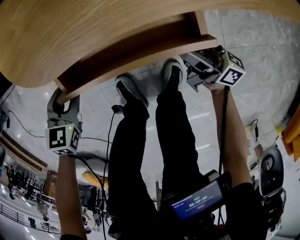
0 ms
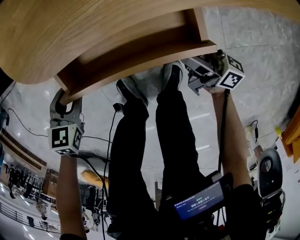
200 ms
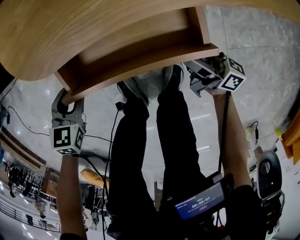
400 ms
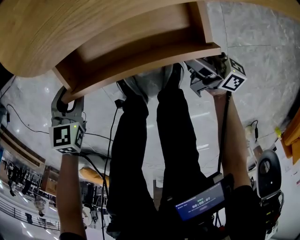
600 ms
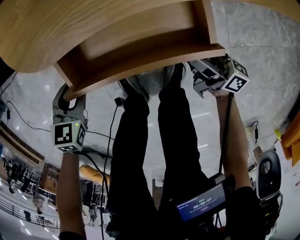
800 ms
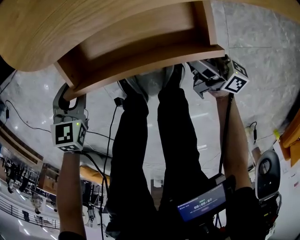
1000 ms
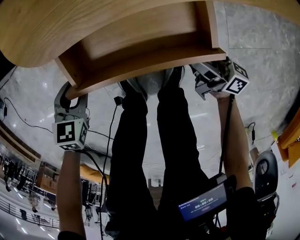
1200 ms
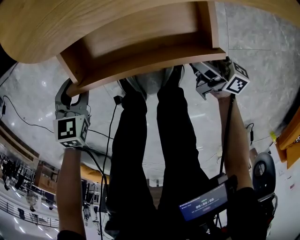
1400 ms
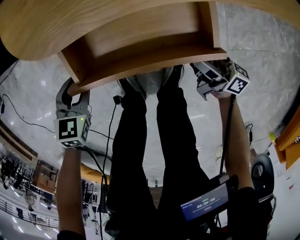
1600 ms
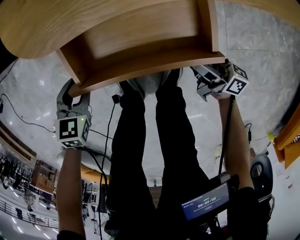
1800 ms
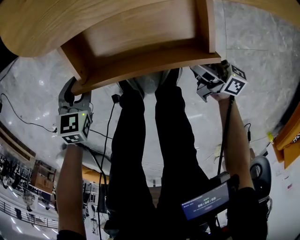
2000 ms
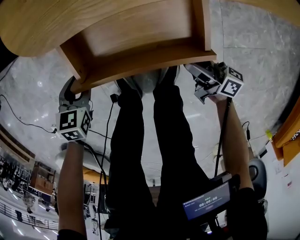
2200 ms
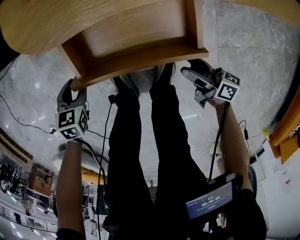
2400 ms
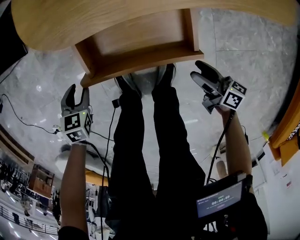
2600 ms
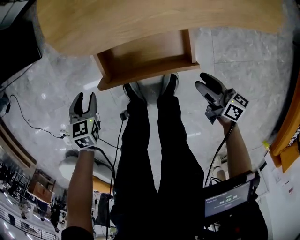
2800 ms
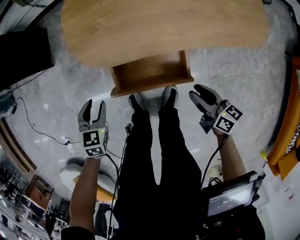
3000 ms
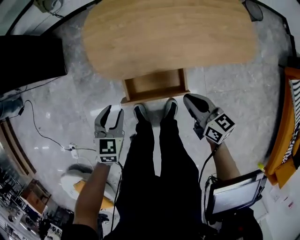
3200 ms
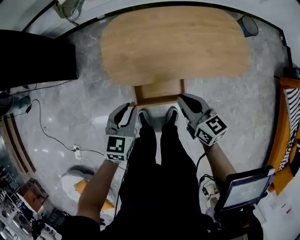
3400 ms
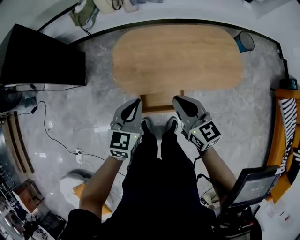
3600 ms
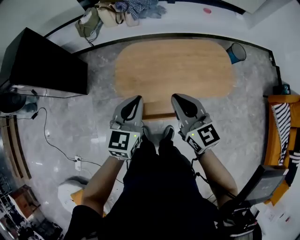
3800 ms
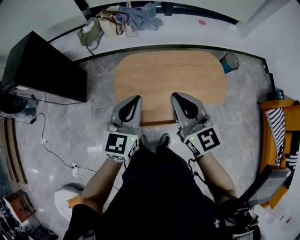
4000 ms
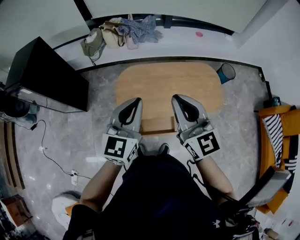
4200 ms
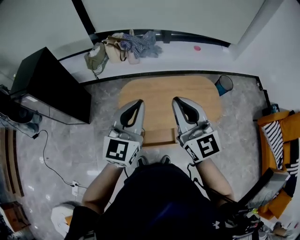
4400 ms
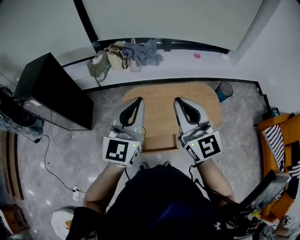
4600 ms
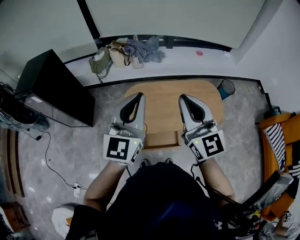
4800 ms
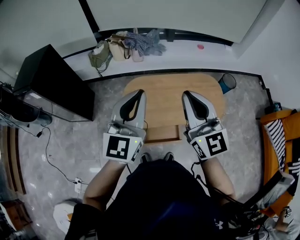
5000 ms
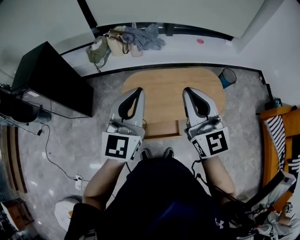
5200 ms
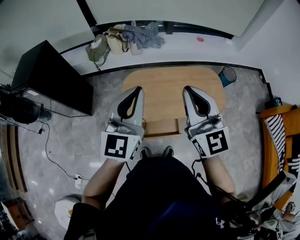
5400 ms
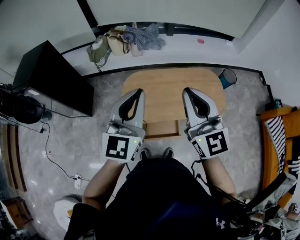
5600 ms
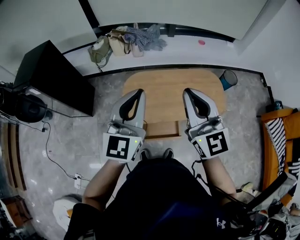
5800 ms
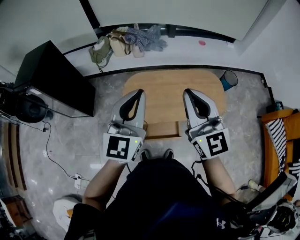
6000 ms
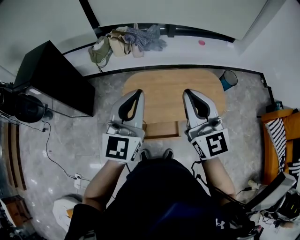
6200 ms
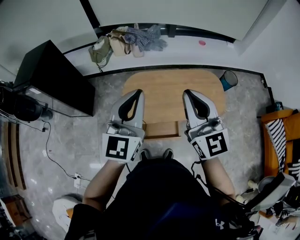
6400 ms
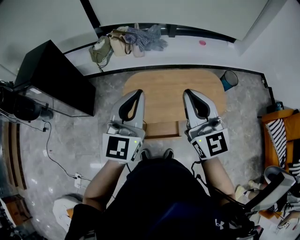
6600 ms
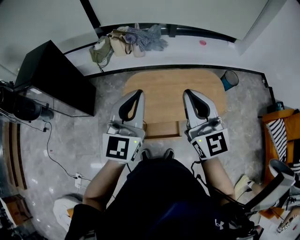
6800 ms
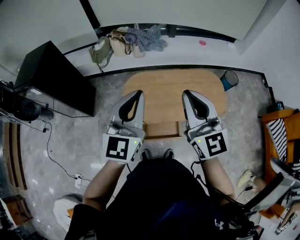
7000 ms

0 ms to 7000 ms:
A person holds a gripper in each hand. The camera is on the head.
0 ms to 1400 ms: The right gripper shifts about 5 cm backward.
1400 ms to 2800 ms: The left gripper goes roughly 10 cm upward, while the right gripper is displaced upward and backward by roughly 15 cm, changes its angle by approximately 30 degrees, and closes its fingers.
2800 ms to 4200 ms: Both grippers move upward, about 70 cm. The right gripper rolls counterclockwise, seen from behind, by some 60 degrees, and closes its fingers, while the left gripper angles its fingers upward, by some 50 degrees, and closes up.
4200 ms to 5600 ms: Both grippers travel together upward, about 10 cm.
5600 ms to 7000 ms: Neither gripper changes place.

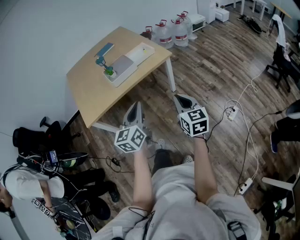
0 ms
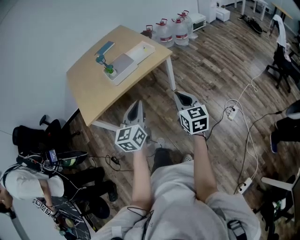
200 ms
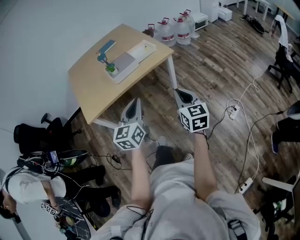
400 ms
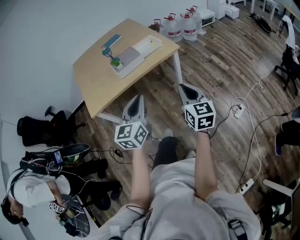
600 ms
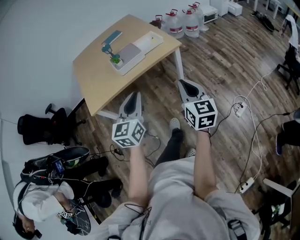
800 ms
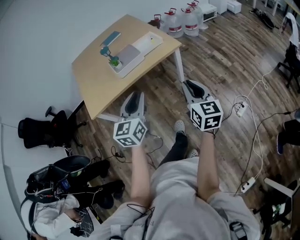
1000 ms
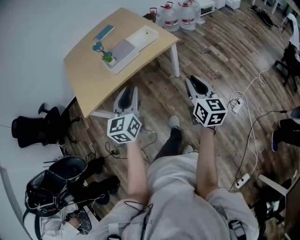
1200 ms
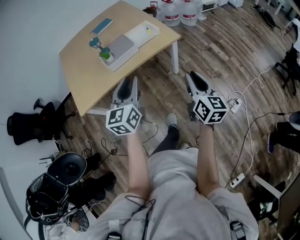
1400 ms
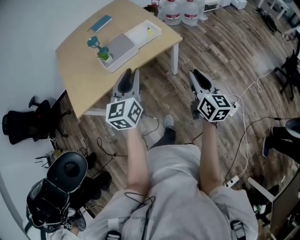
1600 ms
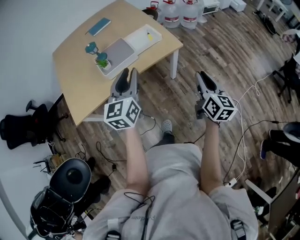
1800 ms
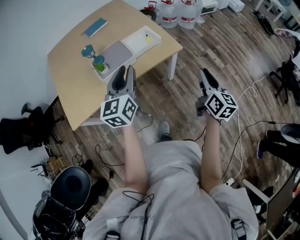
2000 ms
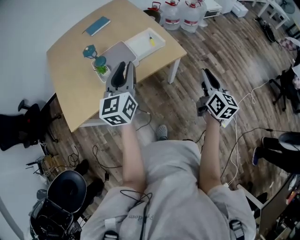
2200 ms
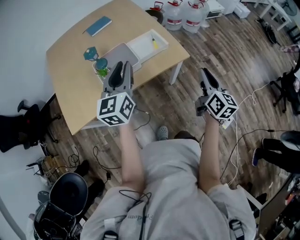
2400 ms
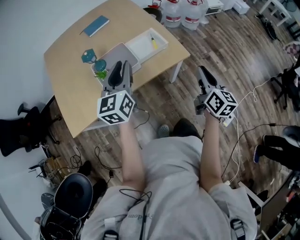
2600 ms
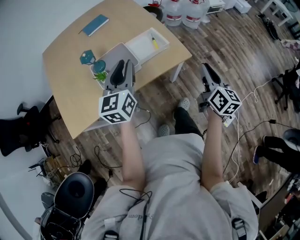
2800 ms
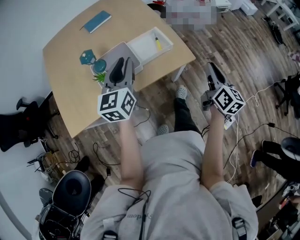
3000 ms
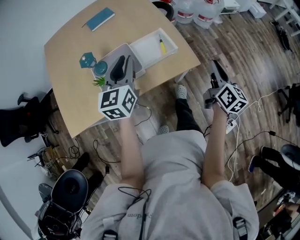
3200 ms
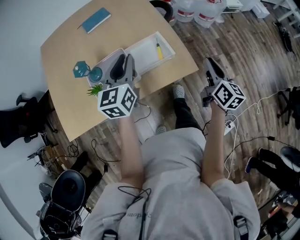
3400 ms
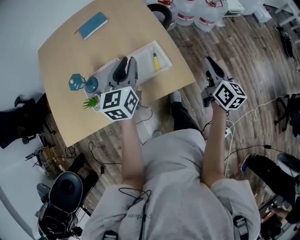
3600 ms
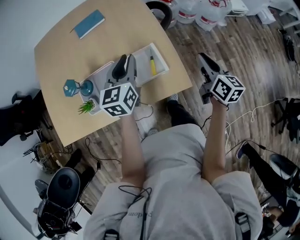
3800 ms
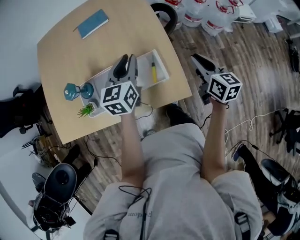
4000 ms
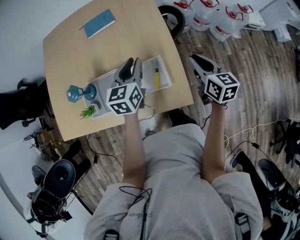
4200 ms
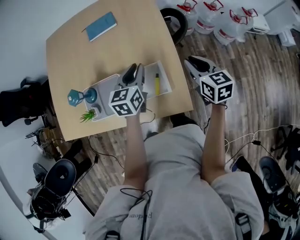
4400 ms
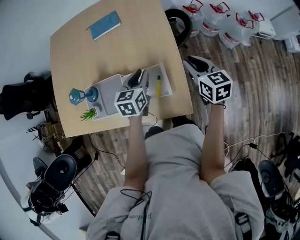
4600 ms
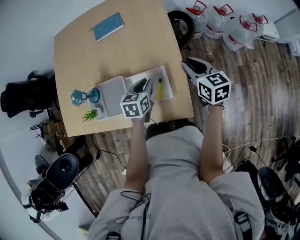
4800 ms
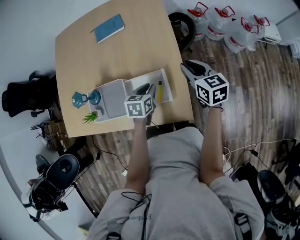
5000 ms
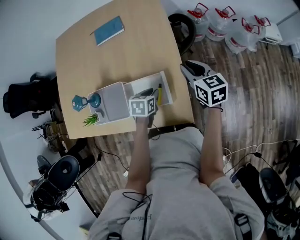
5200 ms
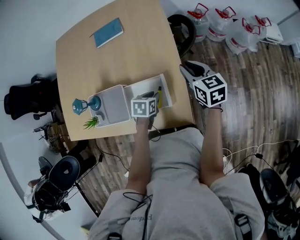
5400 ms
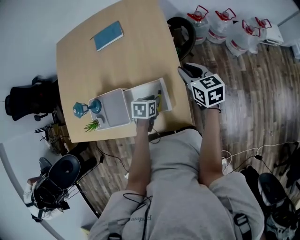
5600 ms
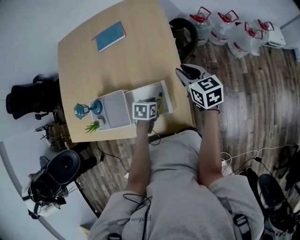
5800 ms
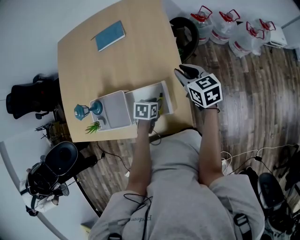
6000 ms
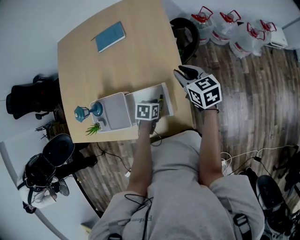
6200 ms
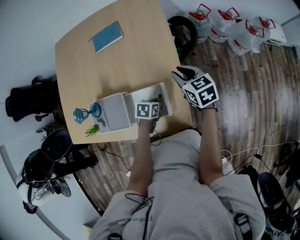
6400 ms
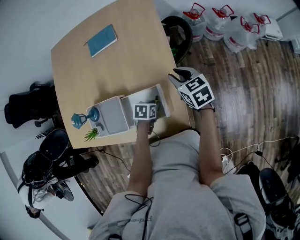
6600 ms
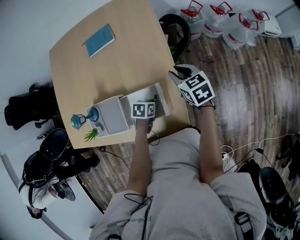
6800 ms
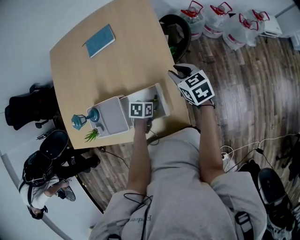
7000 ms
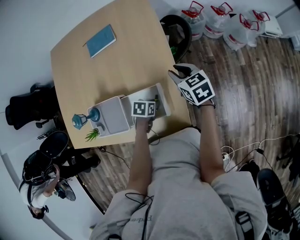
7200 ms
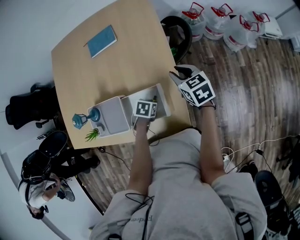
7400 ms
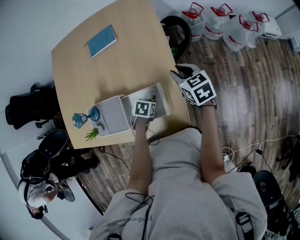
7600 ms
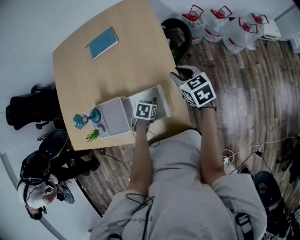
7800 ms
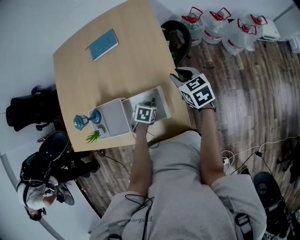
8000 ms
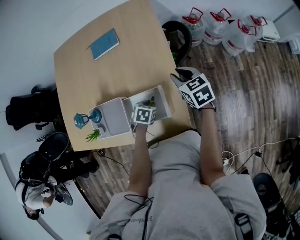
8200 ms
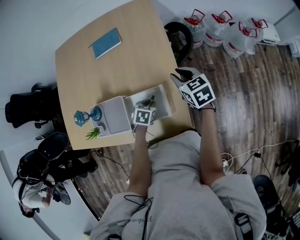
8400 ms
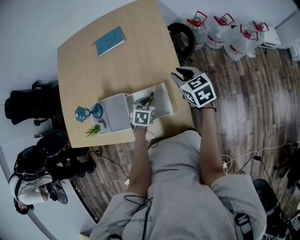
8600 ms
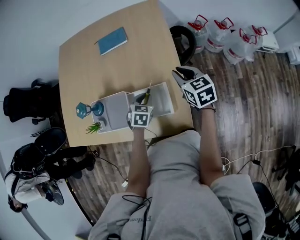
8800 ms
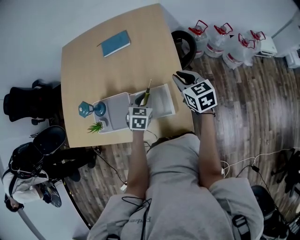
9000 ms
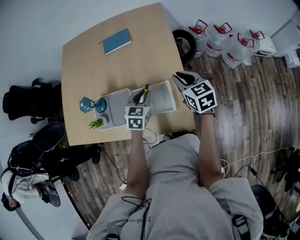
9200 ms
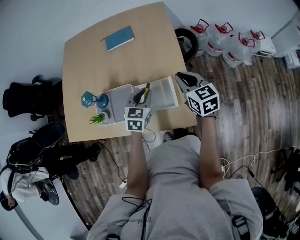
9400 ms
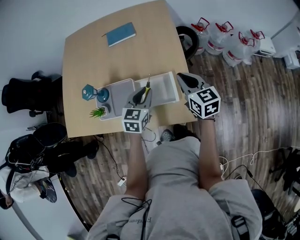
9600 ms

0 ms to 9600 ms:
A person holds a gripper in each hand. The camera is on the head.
0 ms to 1600 ms: The grippers both shift forward by about 20 cm. The left gripper opens its fingers.
1600 ms to 3200 ms: Both grippers travel together forward, about 35 cm.
3200 ms to 4800 ms: The right gripper moves approximately 35 cm, and rotates approximately 50 degrees; the left gripper shifts by roughly 30 cm, and angles its fingers downward, by about 30 degrees.
4800 ms to 6400 ms: The right gripper shifts about 5 cm forward, while the left gripper heads downward, covering about 15 cm, and changes its angle by about 30 degrees.
6400 ms to 8000 ms: The grippers move only a little.
8000 ms to 9600 ms: The left gripper travels upward by approximately 20 cm, and points its fingers some 50 degrees further upward, while the right gripper shifts by approximately 15 cm, and closes its fingers.

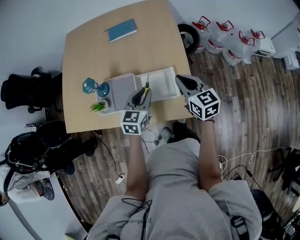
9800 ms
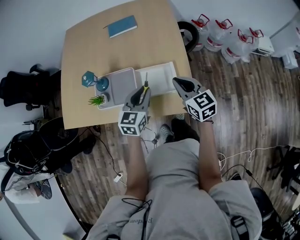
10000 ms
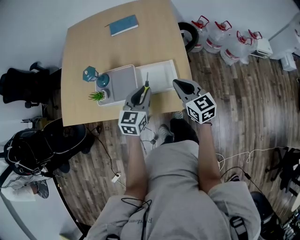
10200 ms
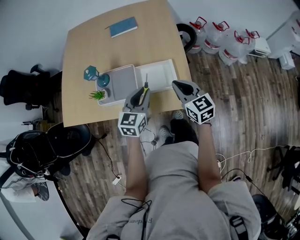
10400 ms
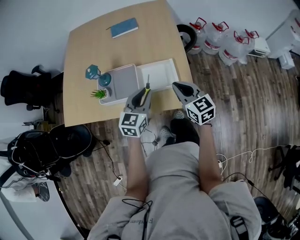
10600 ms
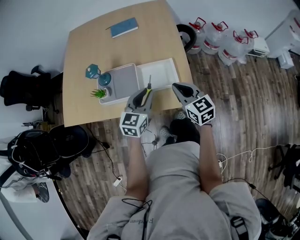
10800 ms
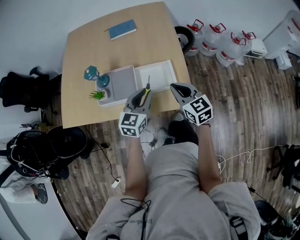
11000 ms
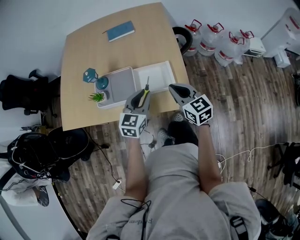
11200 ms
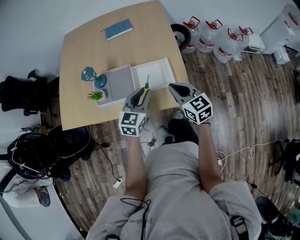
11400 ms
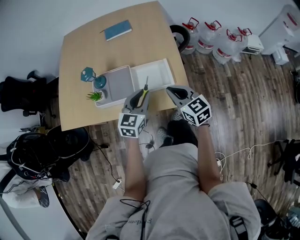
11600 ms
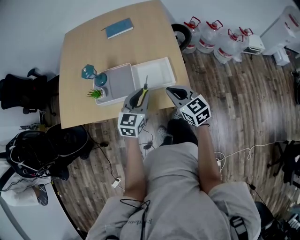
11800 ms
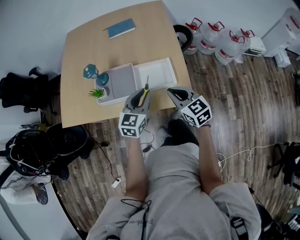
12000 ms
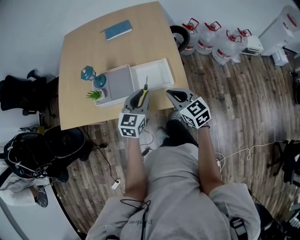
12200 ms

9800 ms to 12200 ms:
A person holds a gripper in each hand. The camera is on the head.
9800 ms to 11000 ms: Both grippers travel together backward, approximately 10 cm.
11000 ms to 12200 ms: The grippers move only a little.

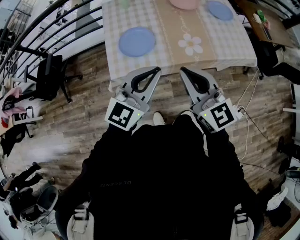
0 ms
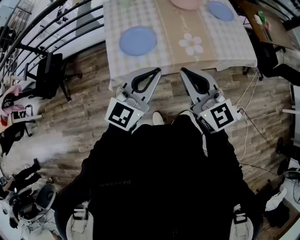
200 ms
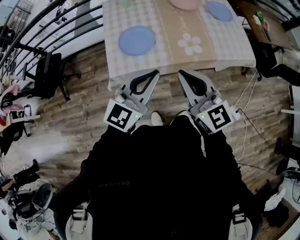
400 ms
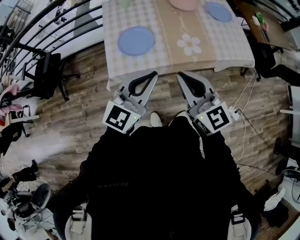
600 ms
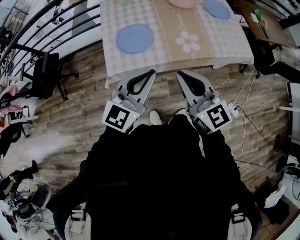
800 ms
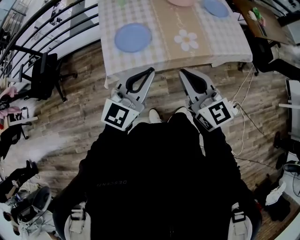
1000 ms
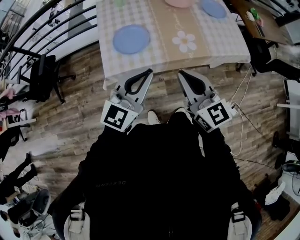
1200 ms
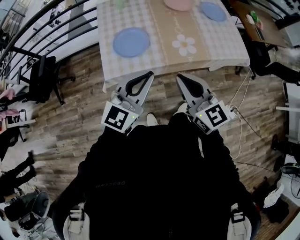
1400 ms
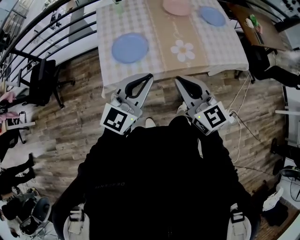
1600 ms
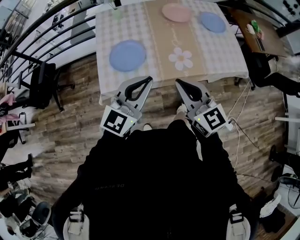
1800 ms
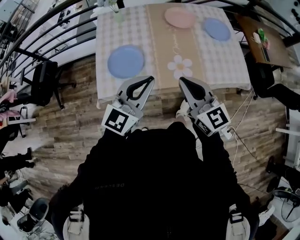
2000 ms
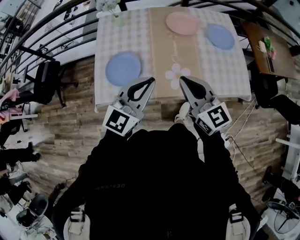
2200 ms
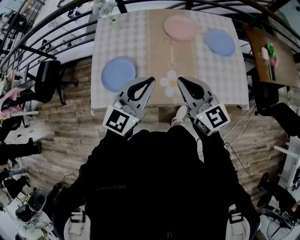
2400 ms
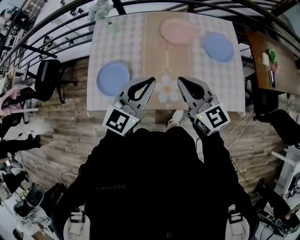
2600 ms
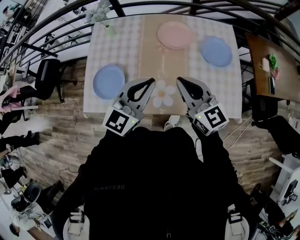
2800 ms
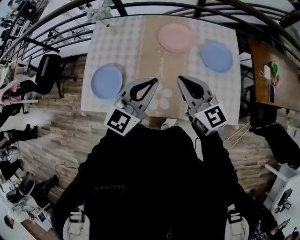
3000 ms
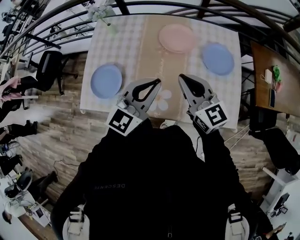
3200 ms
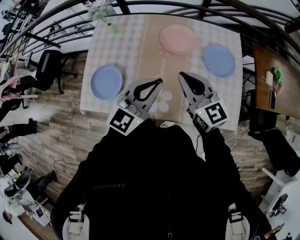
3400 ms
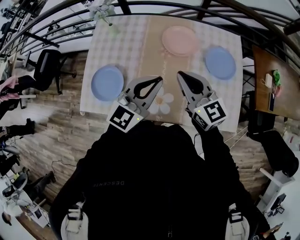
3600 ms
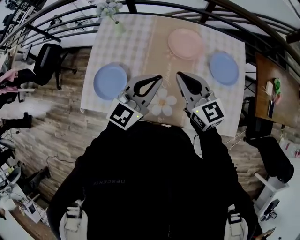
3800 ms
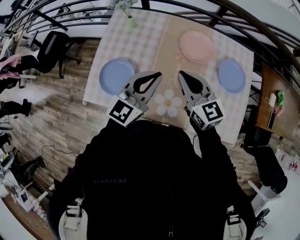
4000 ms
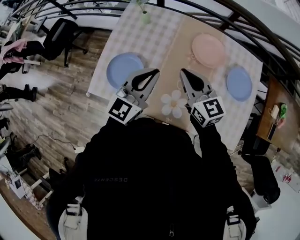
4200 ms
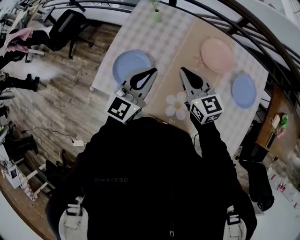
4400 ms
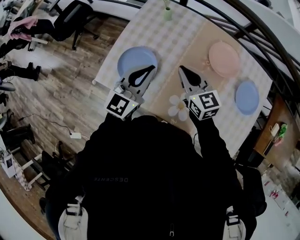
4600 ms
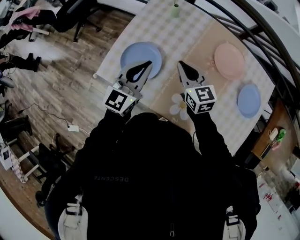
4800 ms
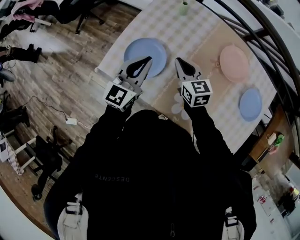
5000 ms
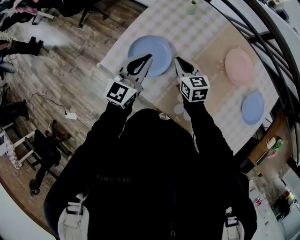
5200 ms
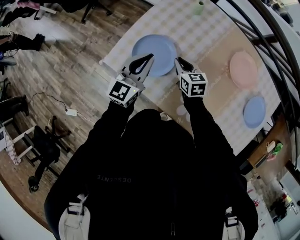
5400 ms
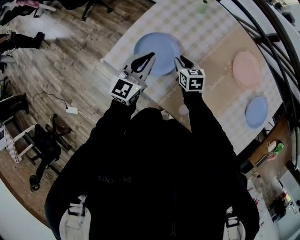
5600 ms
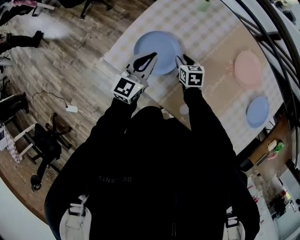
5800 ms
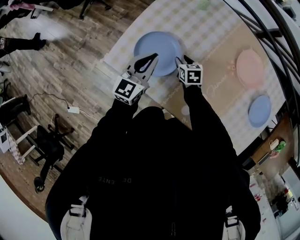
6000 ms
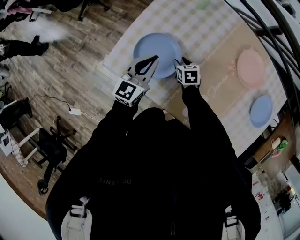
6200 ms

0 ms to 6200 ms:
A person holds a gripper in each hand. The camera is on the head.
0 ms to 1600 ms: There are only small adjustments of the grippers.
1600 ms to 3200 ms: Both grippers are carried forward and to the right, about 40 cm.
3200 ms to 4600 ms: The left gripper is displaced to the left and forward by some 25 cm, and turns by about 30 degrees; the right gripper heads to the left, forward and downward, covering about 25 cm.
4600 ms to 6200 ms: The left gripper travels downward, to the left and forward by approximately 20 cm, while the right gripper heads downward, covering roughly 30 cm, tilts its fingers some 40 degrees downward, and opens.
